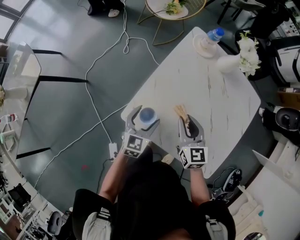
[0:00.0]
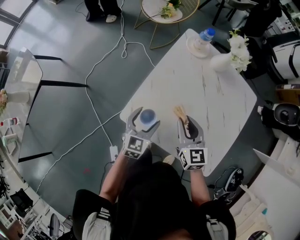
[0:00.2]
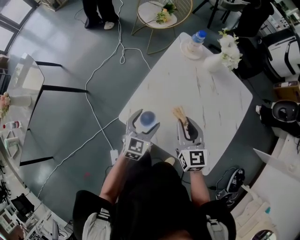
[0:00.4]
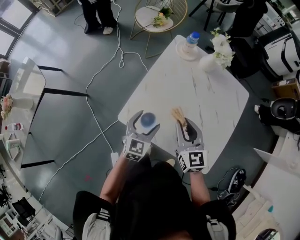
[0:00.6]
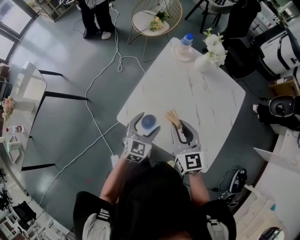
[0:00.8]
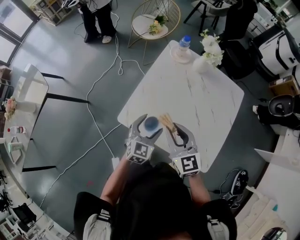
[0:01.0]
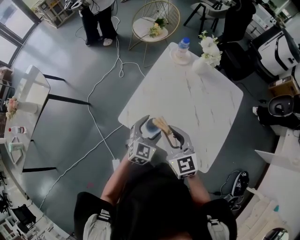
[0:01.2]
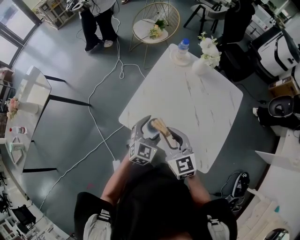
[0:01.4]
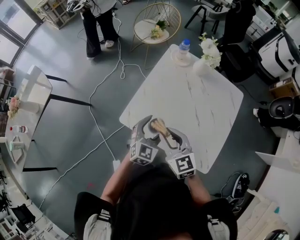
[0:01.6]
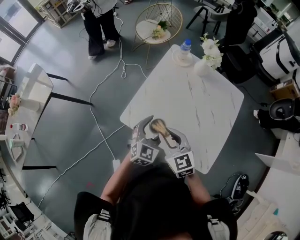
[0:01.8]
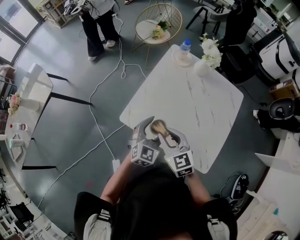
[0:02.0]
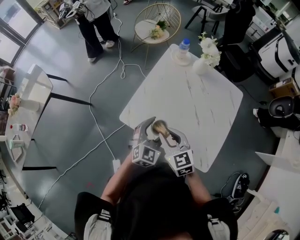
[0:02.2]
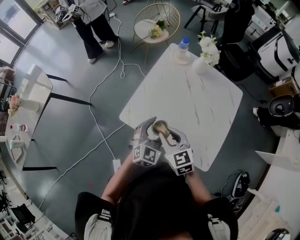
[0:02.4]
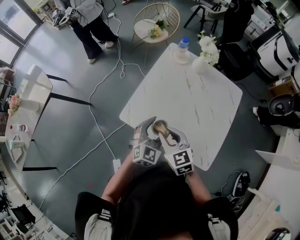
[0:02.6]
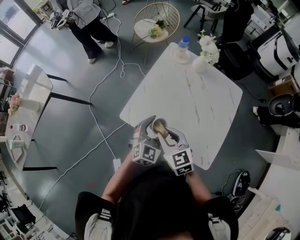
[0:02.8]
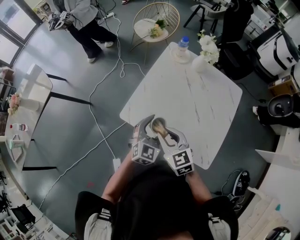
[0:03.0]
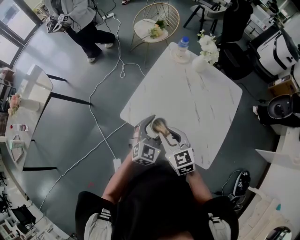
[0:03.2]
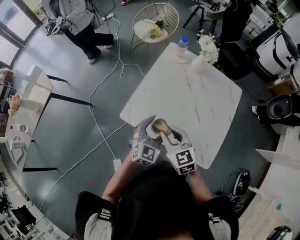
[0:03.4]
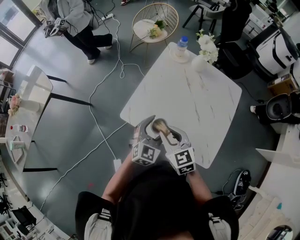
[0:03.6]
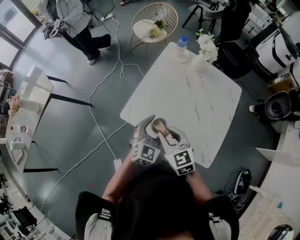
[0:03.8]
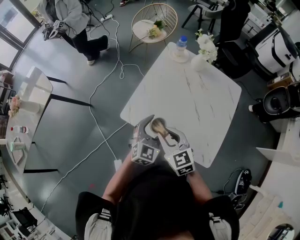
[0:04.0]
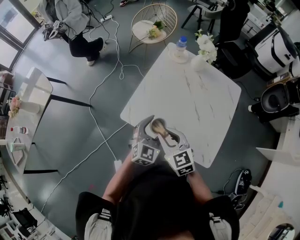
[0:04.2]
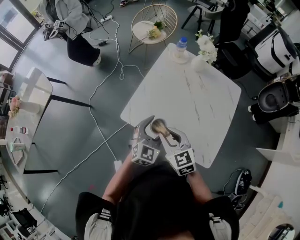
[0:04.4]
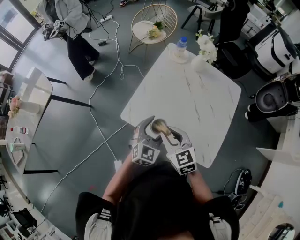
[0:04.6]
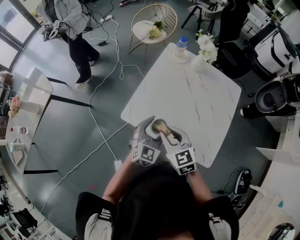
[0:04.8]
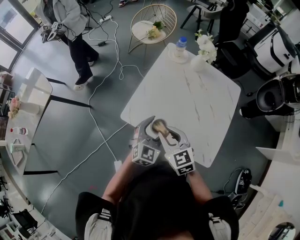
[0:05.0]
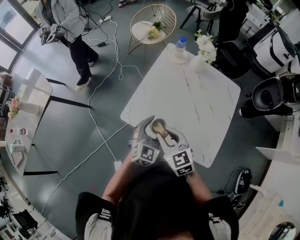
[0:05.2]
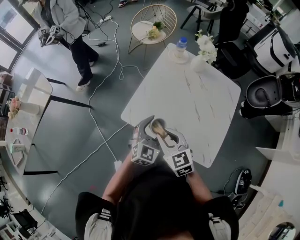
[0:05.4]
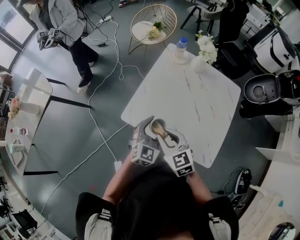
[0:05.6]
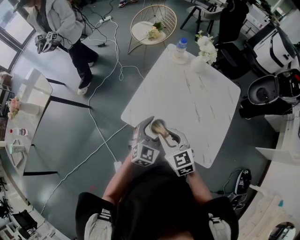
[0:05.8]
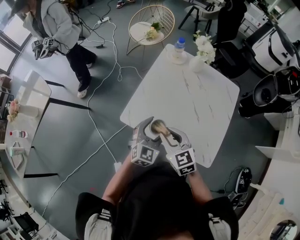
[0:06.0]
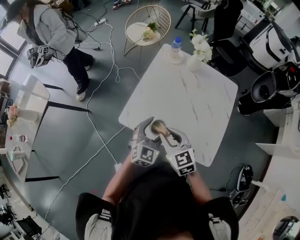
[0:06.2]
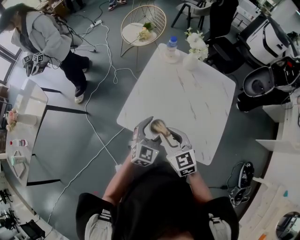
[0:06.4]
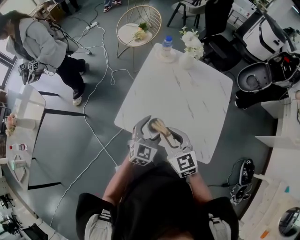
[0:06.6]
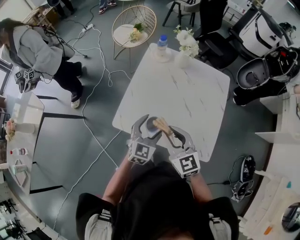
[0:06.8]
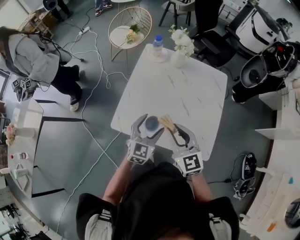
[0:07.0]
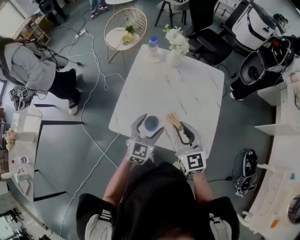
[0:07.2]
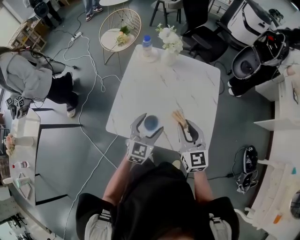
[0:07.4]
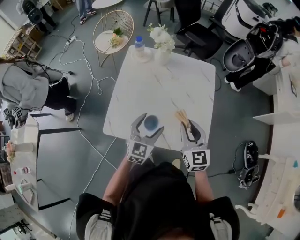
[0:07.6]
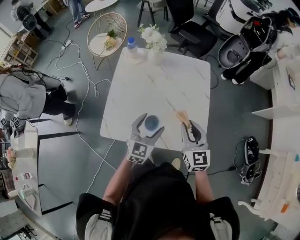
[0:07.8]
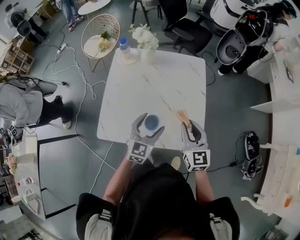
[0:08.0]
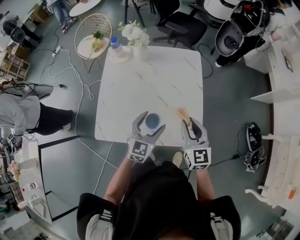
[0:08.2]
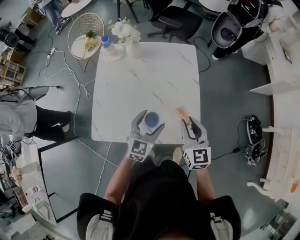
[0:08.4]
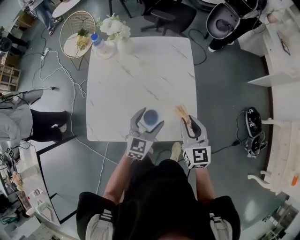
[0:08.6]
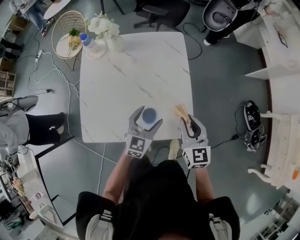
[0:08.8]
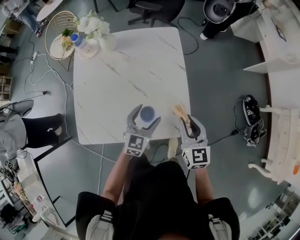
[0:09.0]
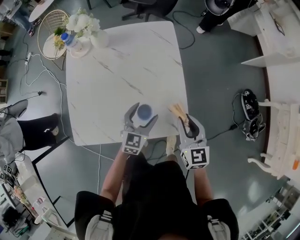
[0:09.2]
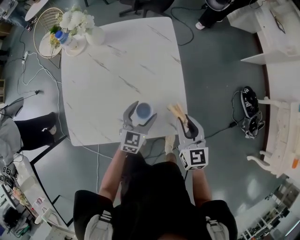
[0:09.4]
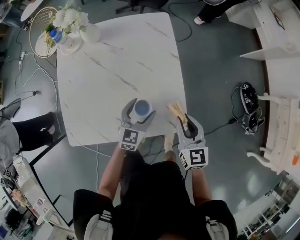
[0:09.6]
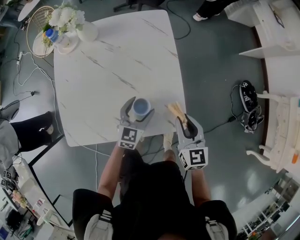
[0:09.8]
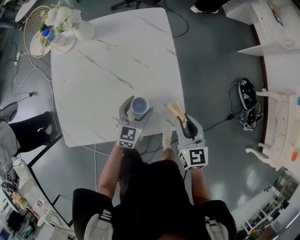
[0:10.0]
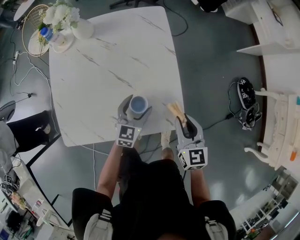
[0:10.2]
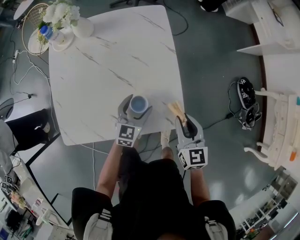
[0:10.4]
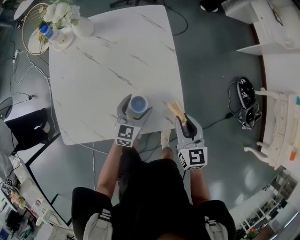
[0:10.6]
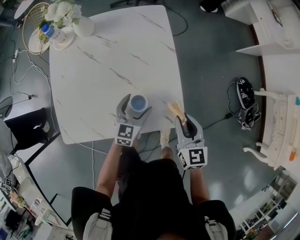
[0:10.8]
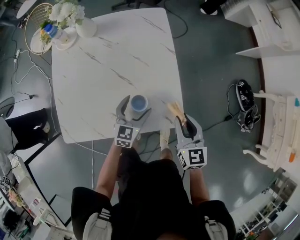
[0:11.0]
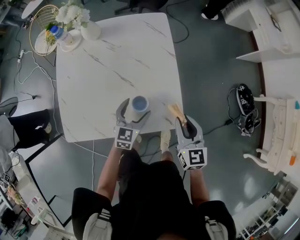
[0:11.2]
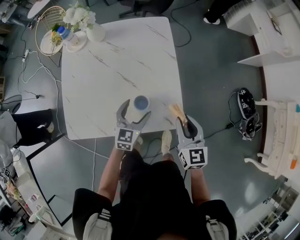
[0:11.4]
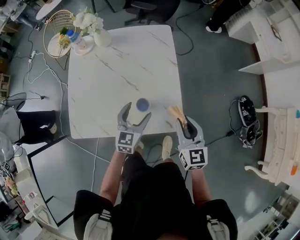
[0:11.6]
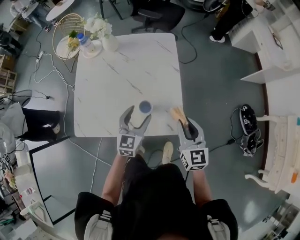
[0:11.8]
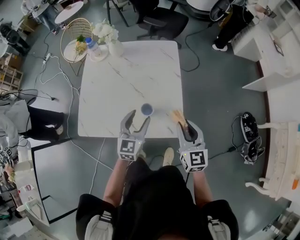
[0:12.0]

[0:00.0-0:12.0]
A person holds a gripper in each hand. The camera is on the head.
0:00.0 to 0:01.6: The right gripper goes some 15 cm backward and upward. The left gripper is displaced upward, to the right and backward by approximately 15 cm, and rotates approximately 20 degrees.
0:01.6 to 0:03.0: The grippers make only small movements.
0:03.0 to 0:04.4: Both grippers stay put.
0:04.4 to 0:06.0: The grippers make only small movements.
0:06.0 to 0:07.6: The left gripper moves to the right, some 10 cm; the right gripper travels to the right by about 20 cm, and changes its angle by roughly 40 degrees.
0:07.6 to 0:09.0: Both grippers travel together to the right and downward, some 20 cm.
0:09.0 to 0:10.4: The two grippers go about 10 cm downward.
0:10.4 to 0:12.0: The right gripper is displaced upward by approximately 10 cm, while the left gripper heads upward and backward, covering about 20 cm.

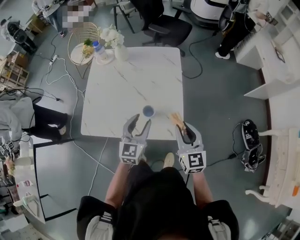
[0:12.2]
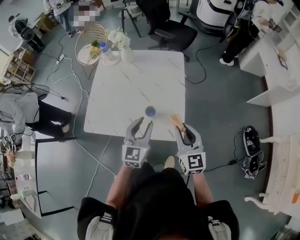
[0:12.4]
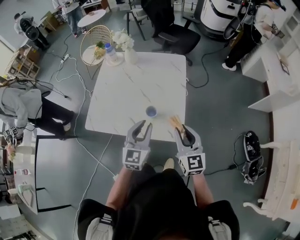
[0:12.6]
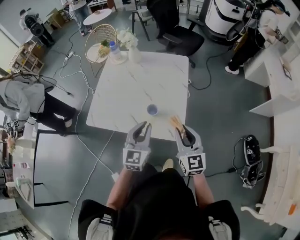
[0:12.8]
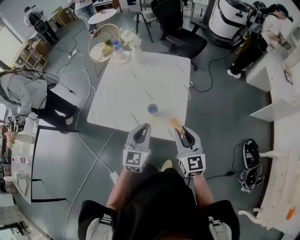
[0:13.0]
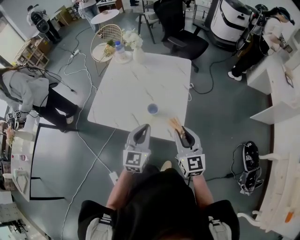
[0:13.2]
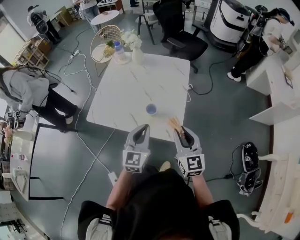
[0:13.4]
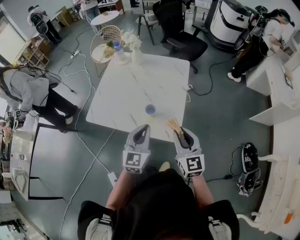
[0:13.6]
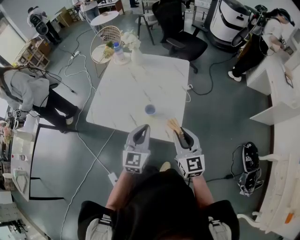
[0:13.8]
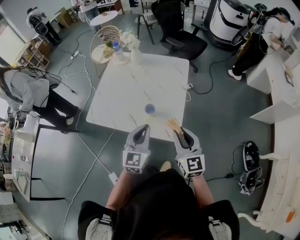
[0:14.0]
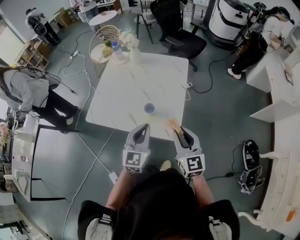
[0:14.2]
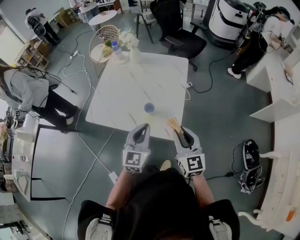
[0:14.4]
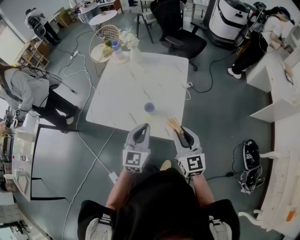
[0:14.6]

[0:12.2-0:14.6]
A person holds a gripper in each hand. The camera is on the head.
0:12.2 to 0:13.4: The right gripper travels backward by about 5 cm; the left gripper goes some 10 cm backward, and closes up.
0:13.4 to 0:14.6: Both grippers stay about where they are.

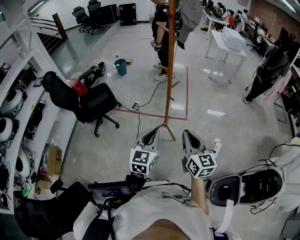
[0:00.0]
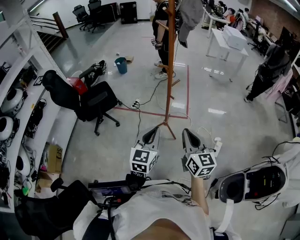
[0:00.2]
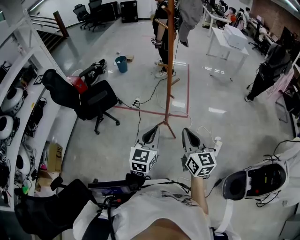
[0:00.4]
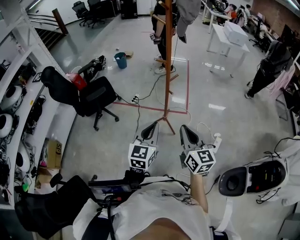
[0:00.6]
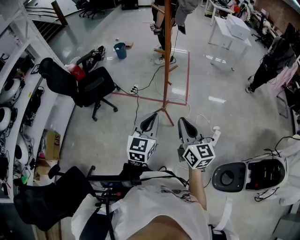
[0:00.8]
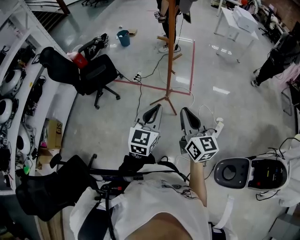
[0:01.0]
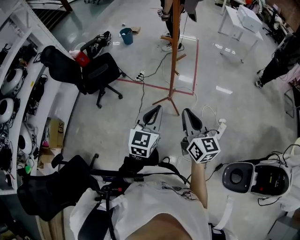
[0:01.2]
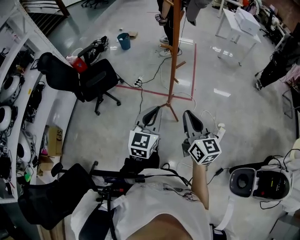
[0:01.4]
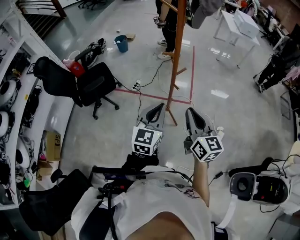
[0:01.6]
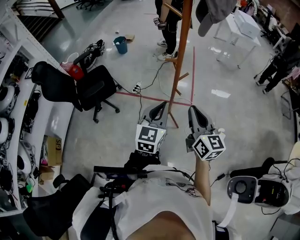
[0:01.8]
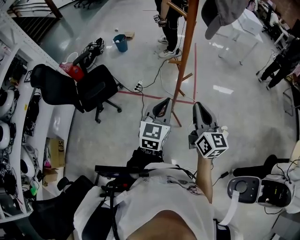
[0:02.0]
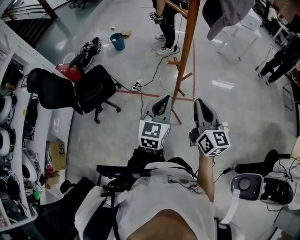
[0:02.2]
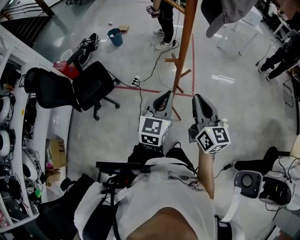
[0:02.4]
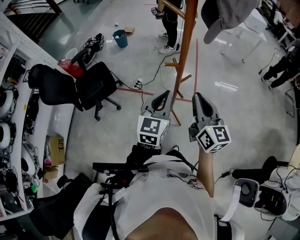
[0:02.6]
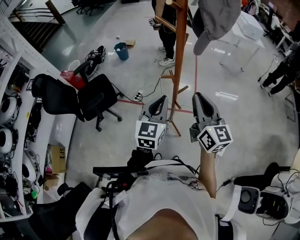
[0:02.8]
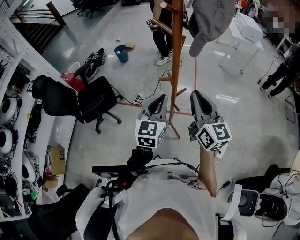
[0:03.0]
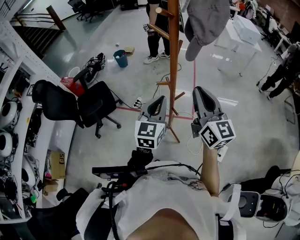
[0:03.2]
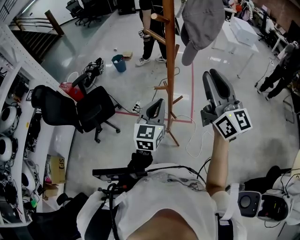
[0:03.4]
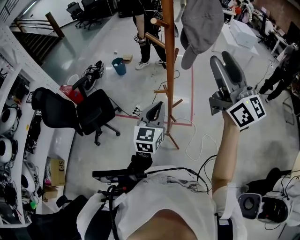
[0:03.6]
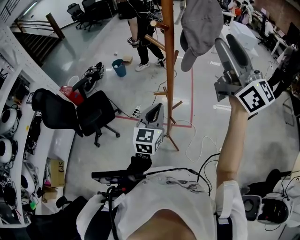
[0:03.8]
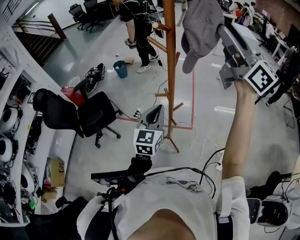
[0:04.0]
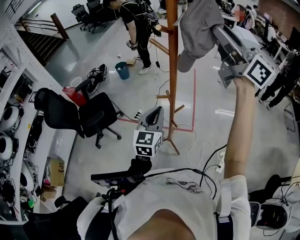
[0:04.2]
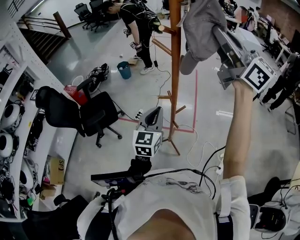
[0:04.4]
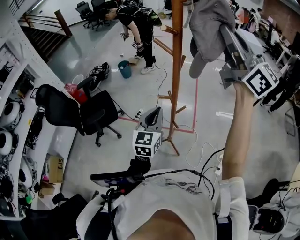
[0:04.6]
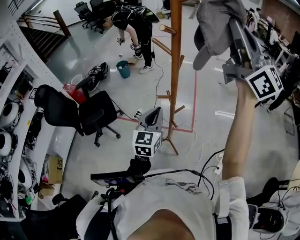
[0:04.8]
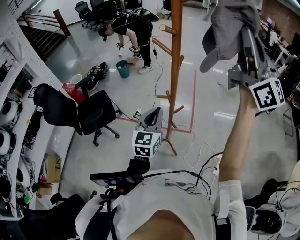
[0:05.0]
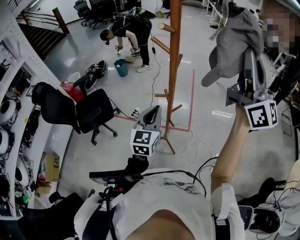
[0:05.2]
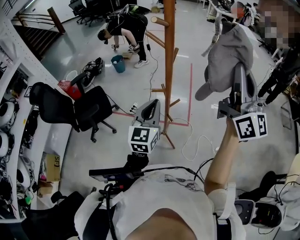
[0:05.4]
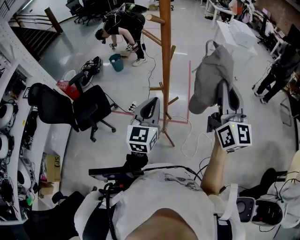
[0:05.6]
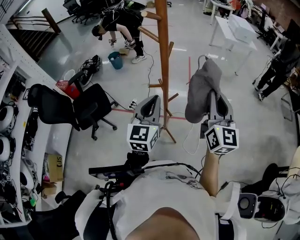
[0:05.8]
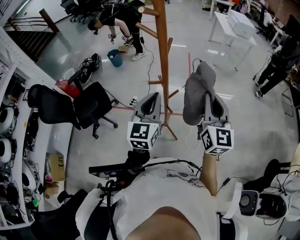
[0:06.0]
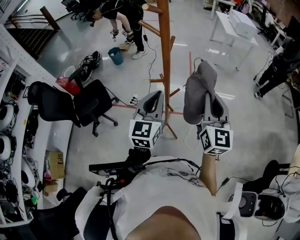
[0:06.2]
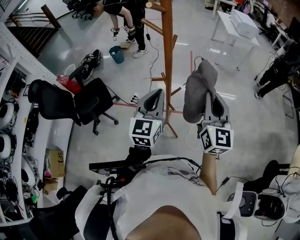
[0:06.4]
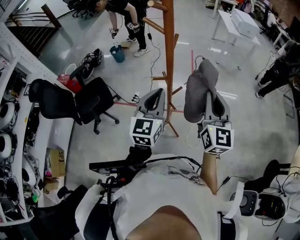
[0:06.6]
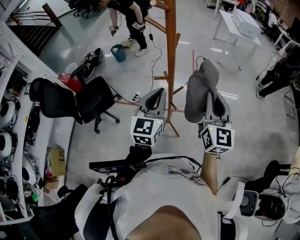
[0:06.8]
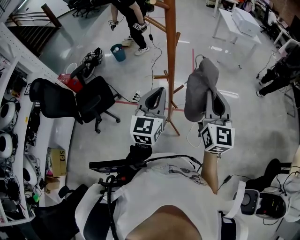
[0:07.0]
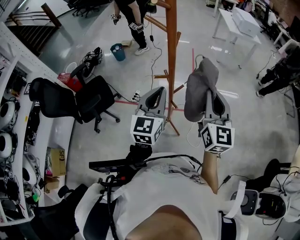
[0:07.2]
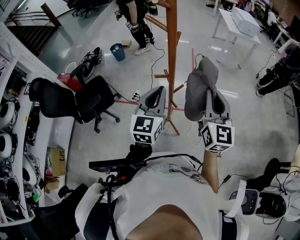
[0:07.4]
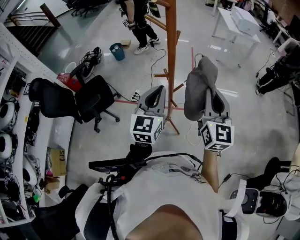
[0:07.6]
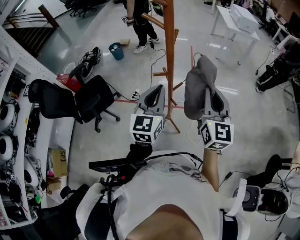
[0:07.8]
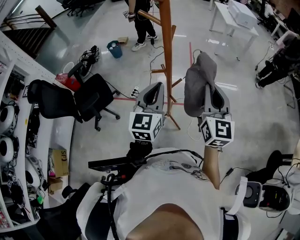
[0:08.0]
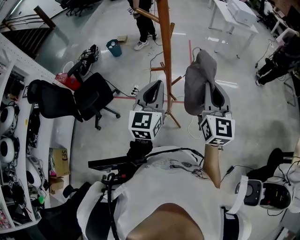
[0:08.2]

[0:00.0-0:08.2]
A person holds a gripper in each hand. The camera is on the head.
0:00.0 to 0:01.6: Both grippers move forward, approximately 10 cm.
0:01.6 to 0:03.2: The left gripper is displaced forward by about 20 cm. The right gripper travels forward and upward by about 20 cm.
0:03.2 to 0:05.0: The right gripper is displaced upward by about 30 cm, tilts its fingers approximately 30 degrees upward, and opens, then closes once more.
0:05.0 to 0:06.6: The right gripper heads downward, covering about 30 cm, and angles its fingers downward, by about 30 degrees.
0:06.6 to 0:08.2: The two grippers keep their place.

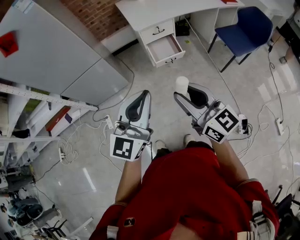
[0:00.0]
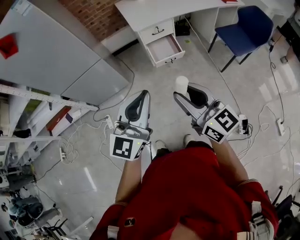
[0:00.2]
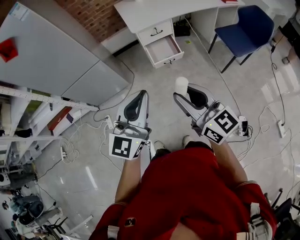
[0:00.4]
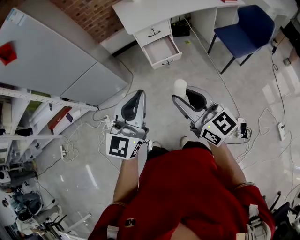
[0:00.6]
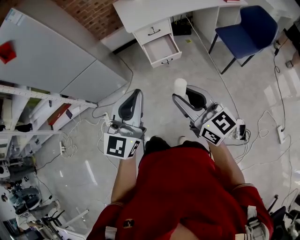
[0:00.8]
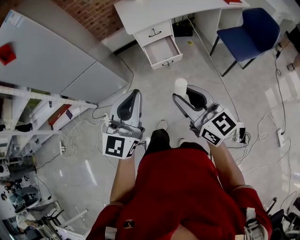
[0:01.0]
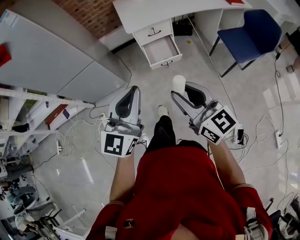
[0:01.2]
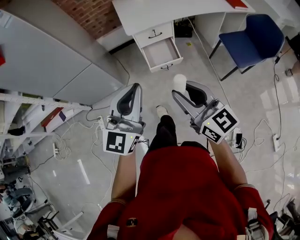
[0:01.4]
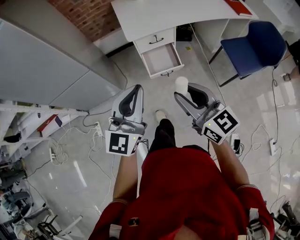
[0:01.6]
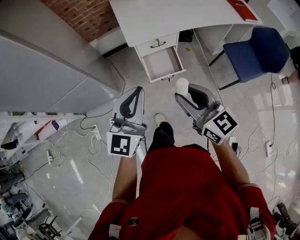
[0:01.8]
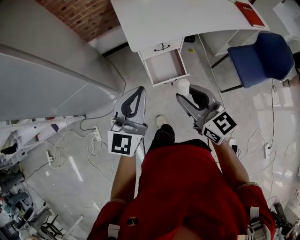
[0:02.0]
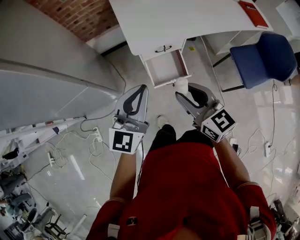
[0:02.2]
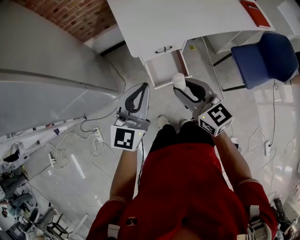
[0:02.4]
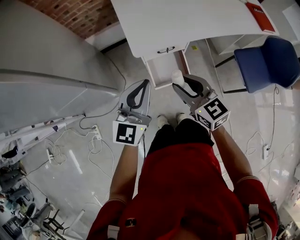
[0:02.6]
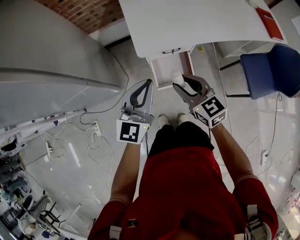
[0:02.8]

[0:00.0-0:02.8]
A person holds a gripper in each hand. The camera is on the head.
0:00.0 to 0:01.4: The grippers both shift forward and to the right by roughly 15 cm.
0:01.4 to 0:02.8: The left gripper shifts some 35 cm forward; the right gripper heads forward and downward, covering approximately 40 cm, and turns by roughly 20 degrees.
